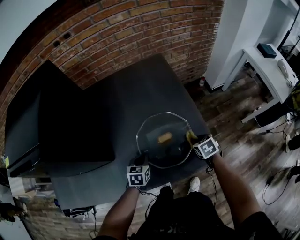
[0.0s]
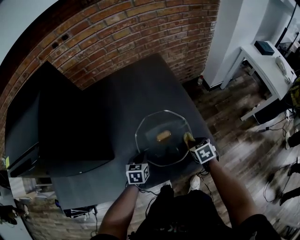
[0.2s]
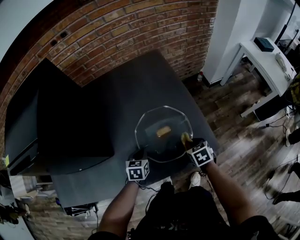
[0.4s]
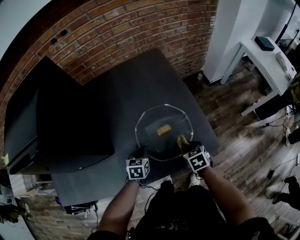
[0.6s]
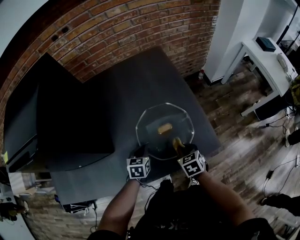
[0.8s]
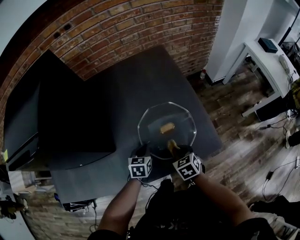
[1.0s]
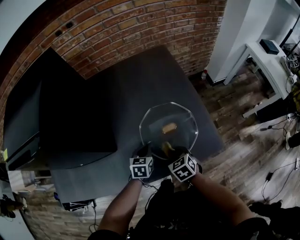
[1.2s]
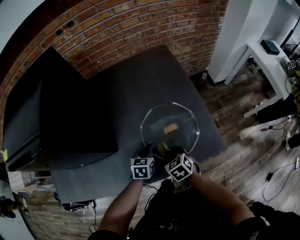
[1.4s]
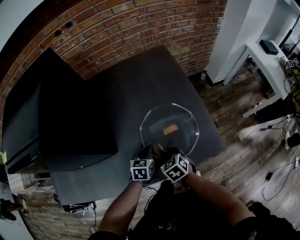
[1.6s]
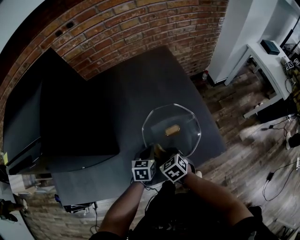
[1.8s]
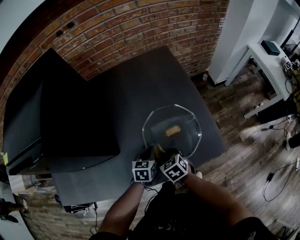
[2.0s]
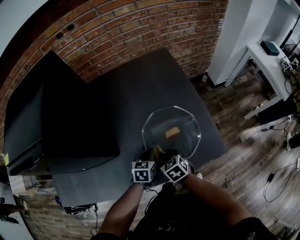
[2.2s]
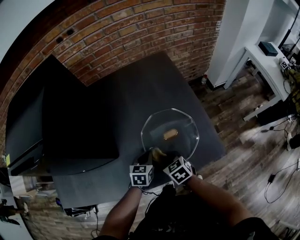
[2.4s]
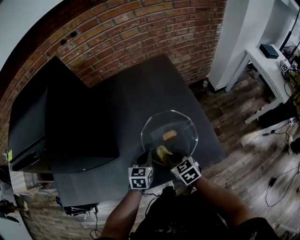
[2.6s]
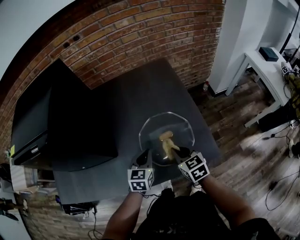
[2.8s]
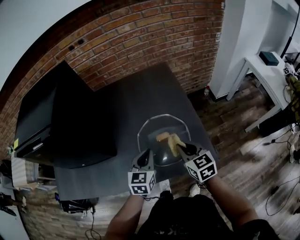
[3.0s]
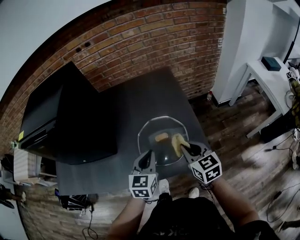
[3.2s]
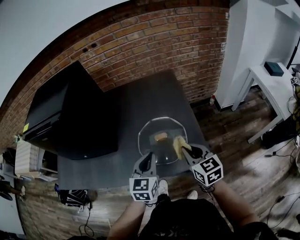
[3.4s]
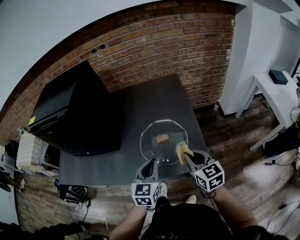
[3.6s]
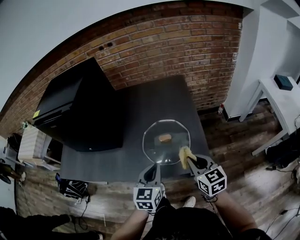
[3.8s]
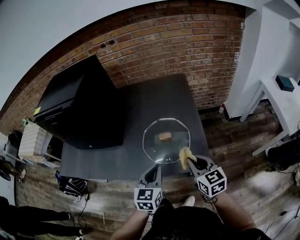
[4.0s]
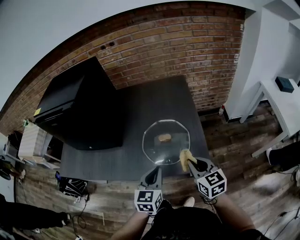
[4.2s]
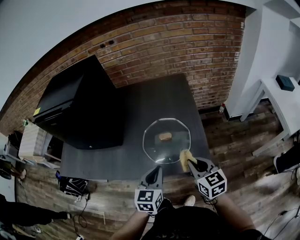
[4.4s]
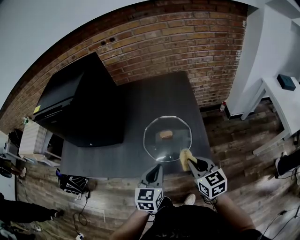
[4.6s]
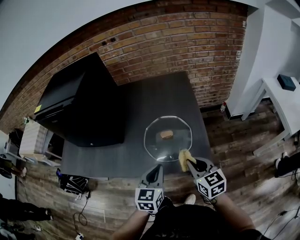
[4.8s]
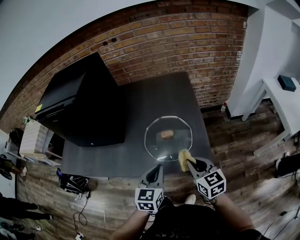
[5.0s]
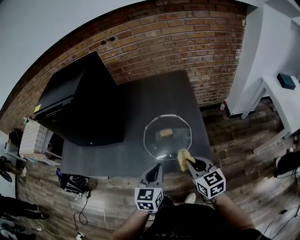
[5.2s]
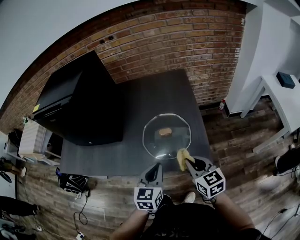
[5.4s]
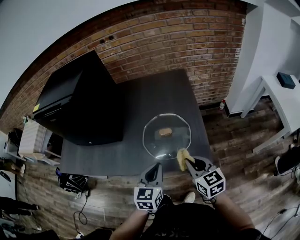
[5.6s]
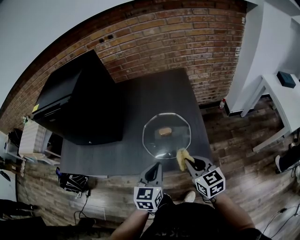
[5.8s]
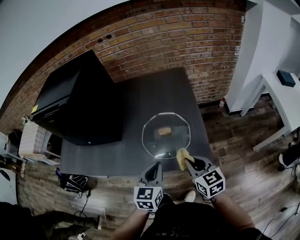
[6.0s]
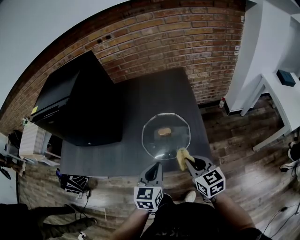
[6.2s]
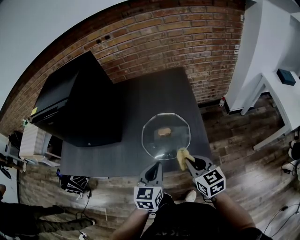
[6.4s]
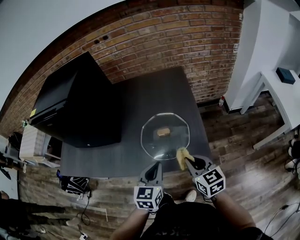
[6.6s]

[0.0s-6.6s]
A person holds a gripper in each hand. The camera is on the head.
0.0s to 1.6s: The right gripper shifts some 20 cm to the left.
1.6s to 3.2s: The two grippers go about 20 cm upward and to the right. The left gripper turns by approximately 30 degrees, while the right gripper angles its fingers upward, by approximately 30 degrees.
3.2s to 5.0s: The two grippers go about 10 cm backward.
5.0s to 6.6s: The grippers move only a little.

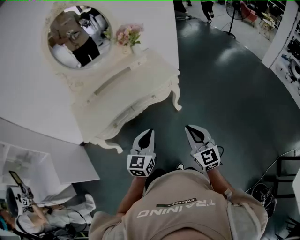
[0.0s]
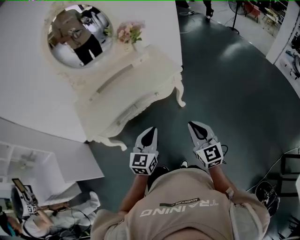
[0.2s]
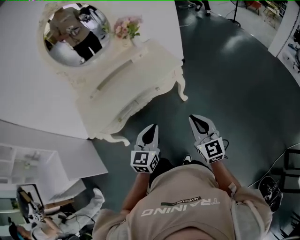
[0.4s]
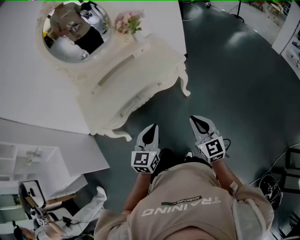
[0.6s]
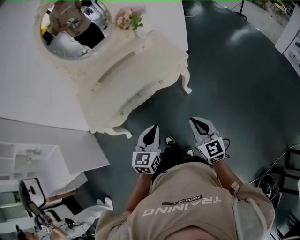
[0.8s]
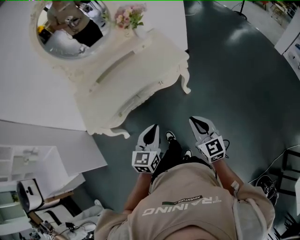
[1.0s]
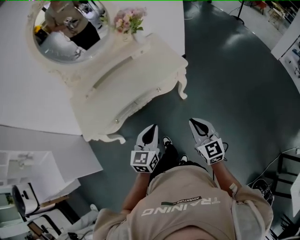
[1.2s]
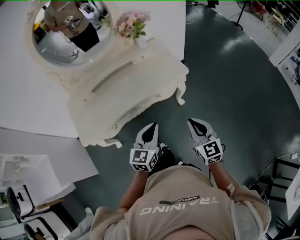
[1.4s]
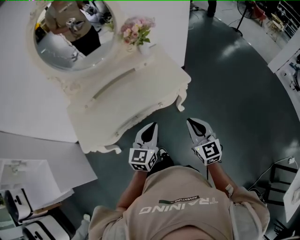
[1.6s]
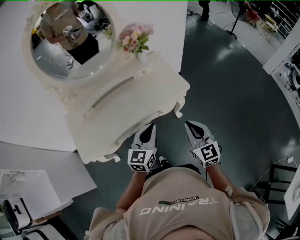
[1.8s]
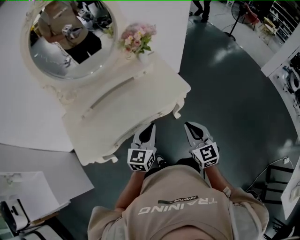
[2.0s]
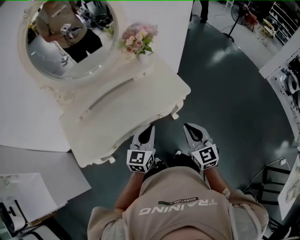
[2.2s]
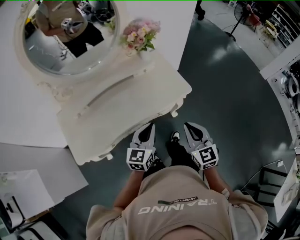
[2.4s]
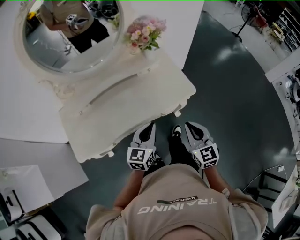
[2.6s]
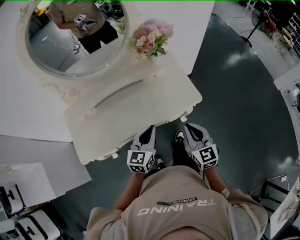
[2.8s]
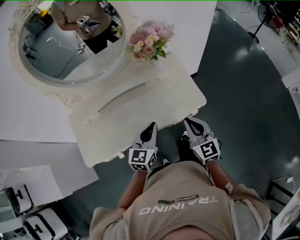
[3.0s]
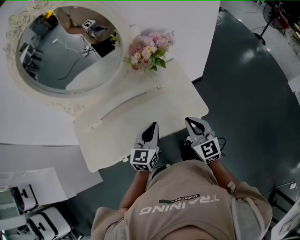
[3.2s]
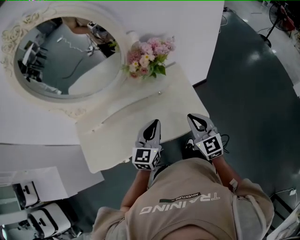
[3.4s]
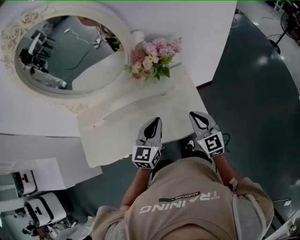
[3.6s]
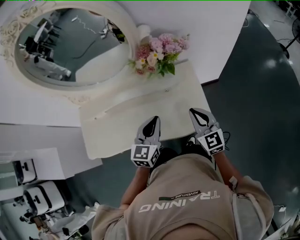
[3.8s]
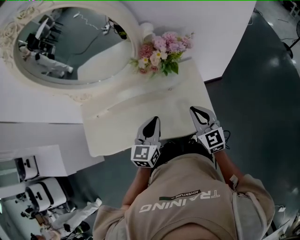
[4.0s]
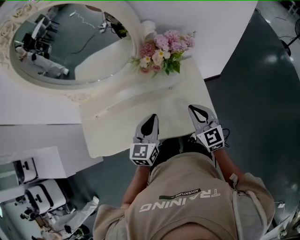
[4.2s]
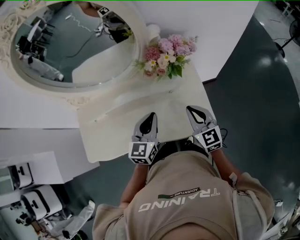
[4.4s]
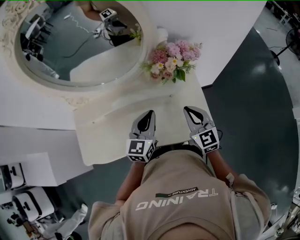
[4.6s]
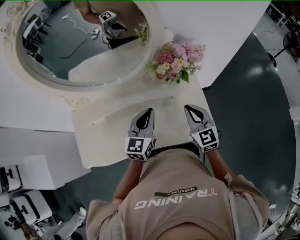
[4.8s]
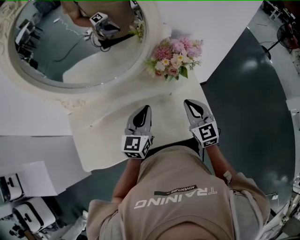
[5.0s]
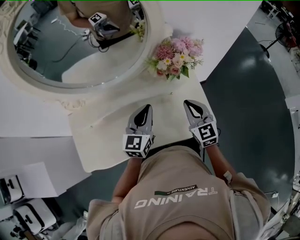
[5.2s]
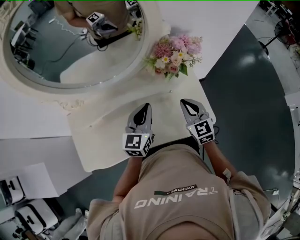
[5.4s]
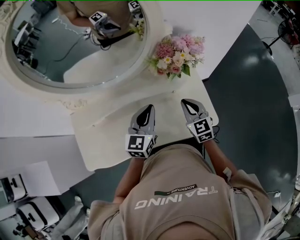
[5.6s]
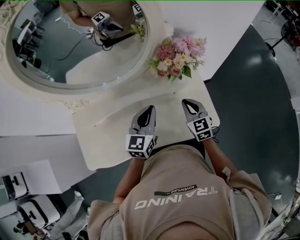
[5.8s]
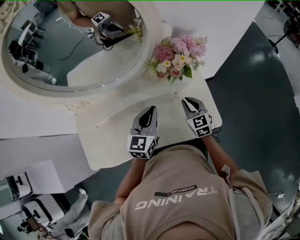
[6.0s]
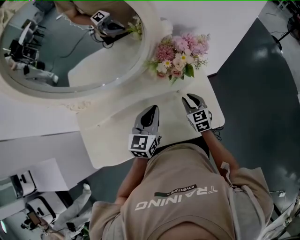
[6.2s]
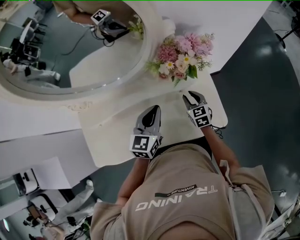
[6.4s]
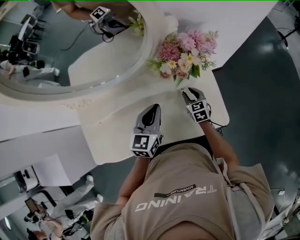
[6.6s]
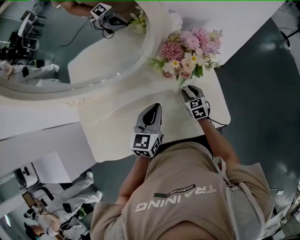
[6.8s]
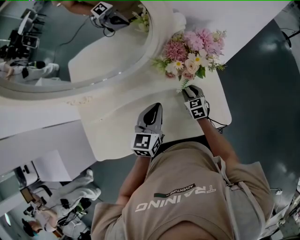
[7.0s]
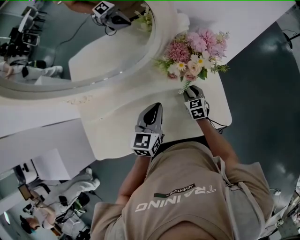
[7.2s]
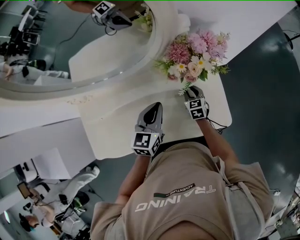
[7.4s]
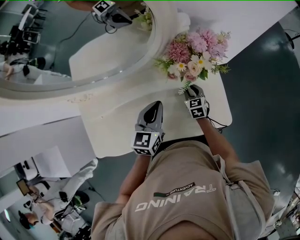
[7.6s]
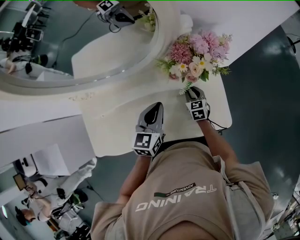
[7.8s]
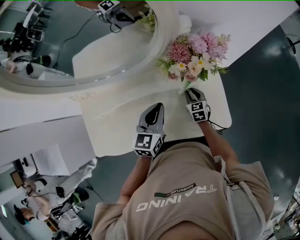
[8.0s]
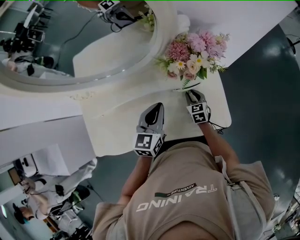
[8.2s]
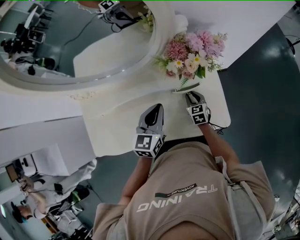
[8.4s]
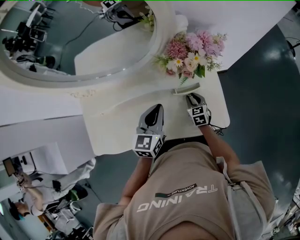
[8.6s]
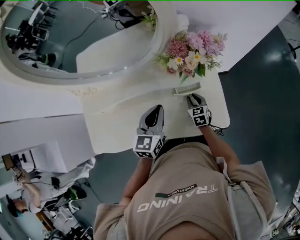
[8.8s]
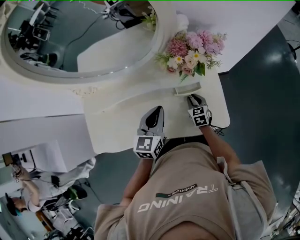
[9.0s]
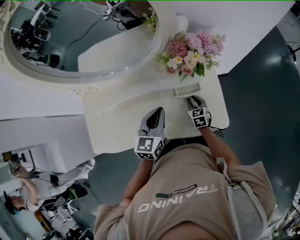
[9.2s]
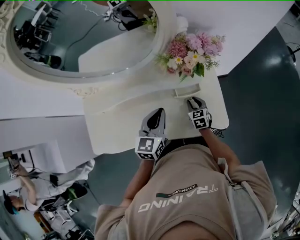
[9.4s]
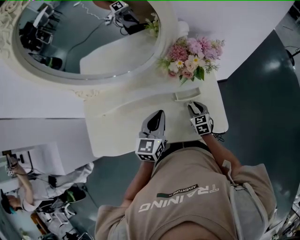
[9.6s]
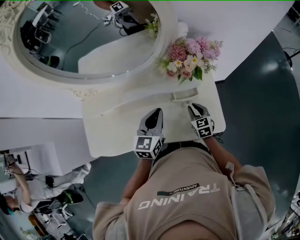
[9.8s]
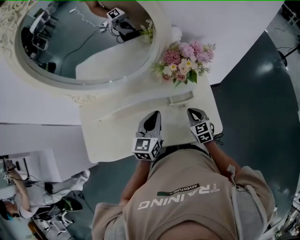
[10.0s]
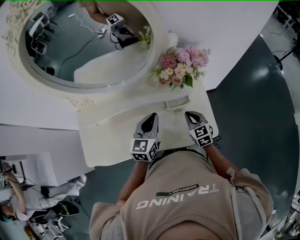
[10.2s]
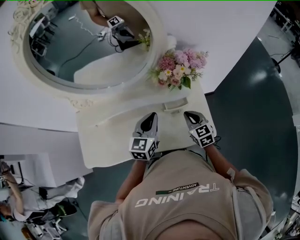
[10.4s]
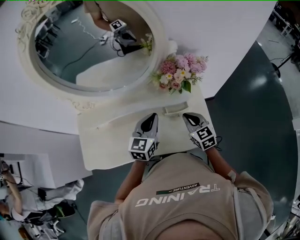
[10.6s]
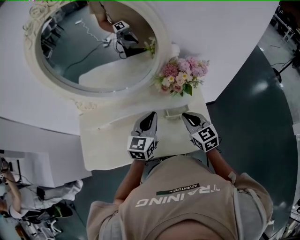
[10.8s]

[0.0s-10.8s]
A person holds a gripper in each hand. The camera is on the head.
0.0s to 1.6s: The grippers both shift forward by roughly 20 cm.
1.6s to 3.0s: Both grippers move forward, about 20 cm.
3.0s to 4.6s: The grippers both shift forward by about 20 cm.
4.6s to 6.2s: The right gripper goes about 15 cm downward and forward, and opens its fingers.
6.2s to 7.8s: The right gripper is displaced downward and forward by about 10 cm.
7.8s to 9.2s: The left gripper changes place by about 5 cm, while the right gripper shifts roughly 5 cm backward.
9.2s to 10.8s: The right gripper moves upward, approximately 20 cm, swivels about 20 degrees, and closes up, while the left gripper ends up roughly 5 cm from where it was.

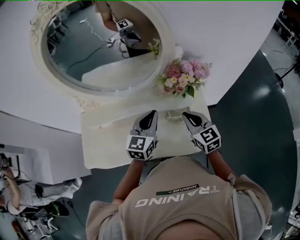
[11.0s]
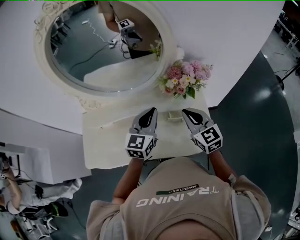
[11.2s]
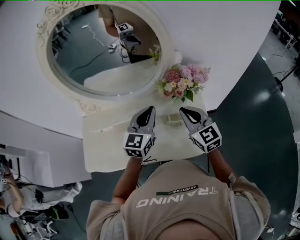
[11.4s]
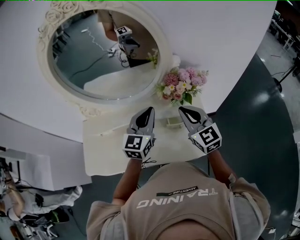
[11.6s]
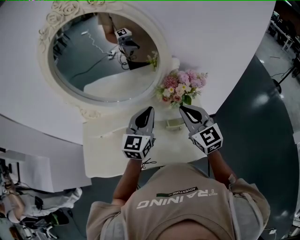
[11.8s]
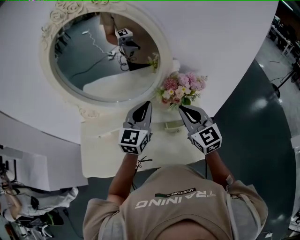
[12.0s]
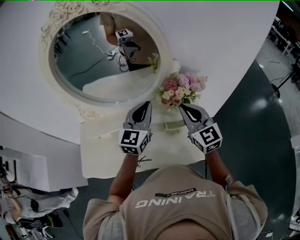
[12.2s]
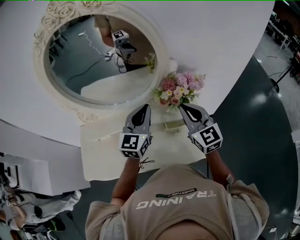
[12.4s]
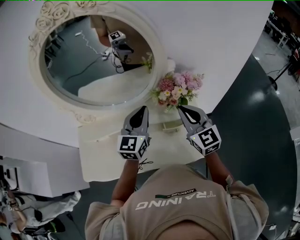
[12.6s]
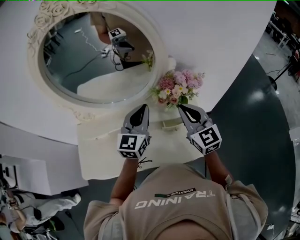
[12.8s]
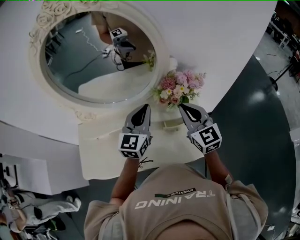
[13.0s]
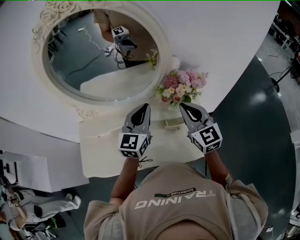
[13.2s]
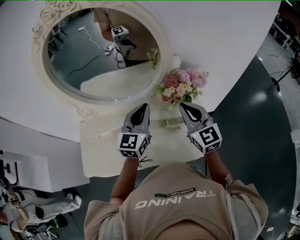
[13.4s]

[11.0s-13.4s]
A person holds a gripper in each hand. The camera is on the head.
11.0s to 12.2s: Both grippers travel together upward, some 10 cm.
12.2s to 13.4s: There are only small adjustments of the grippers.

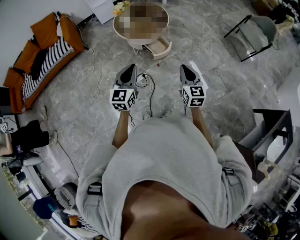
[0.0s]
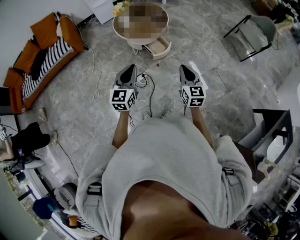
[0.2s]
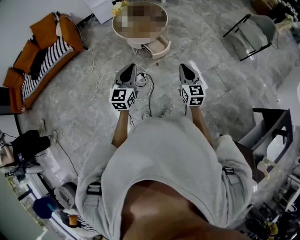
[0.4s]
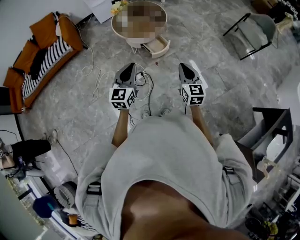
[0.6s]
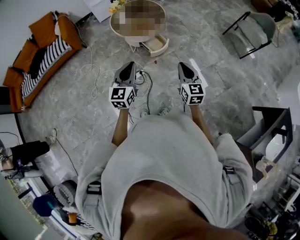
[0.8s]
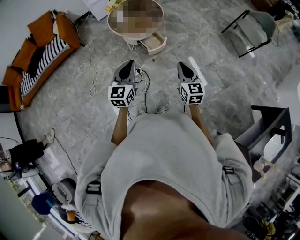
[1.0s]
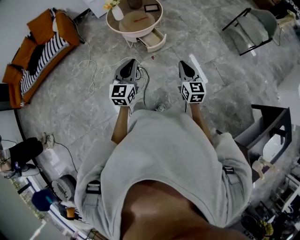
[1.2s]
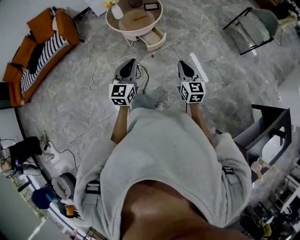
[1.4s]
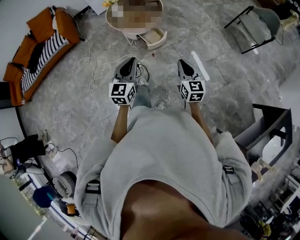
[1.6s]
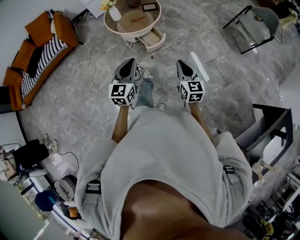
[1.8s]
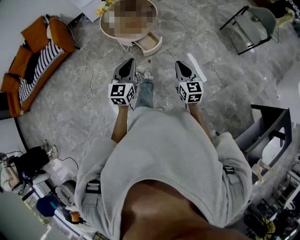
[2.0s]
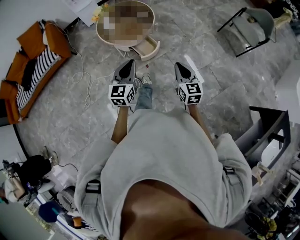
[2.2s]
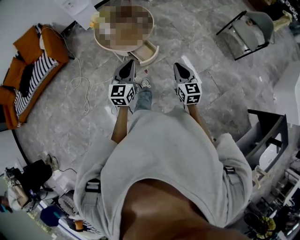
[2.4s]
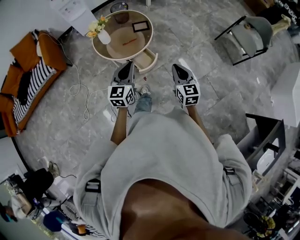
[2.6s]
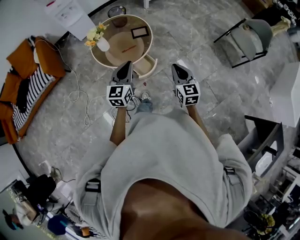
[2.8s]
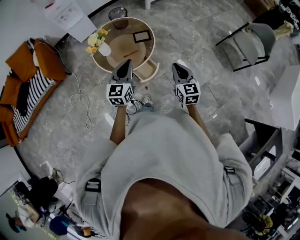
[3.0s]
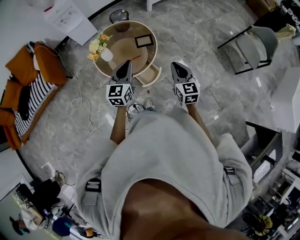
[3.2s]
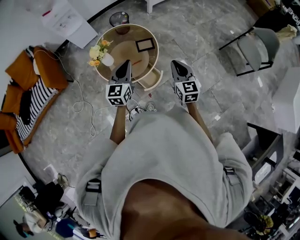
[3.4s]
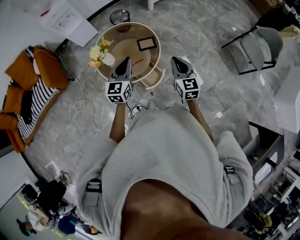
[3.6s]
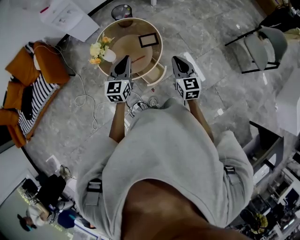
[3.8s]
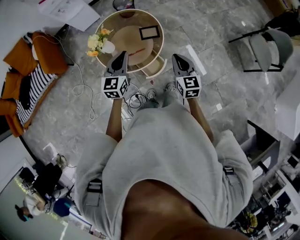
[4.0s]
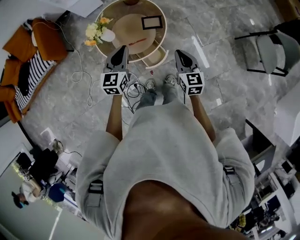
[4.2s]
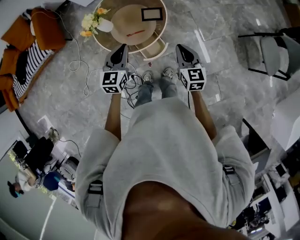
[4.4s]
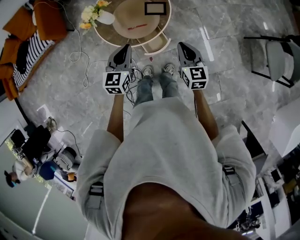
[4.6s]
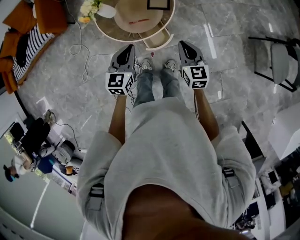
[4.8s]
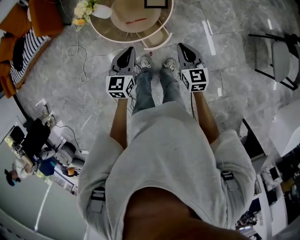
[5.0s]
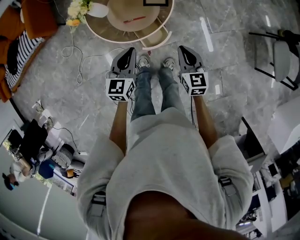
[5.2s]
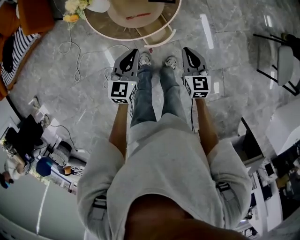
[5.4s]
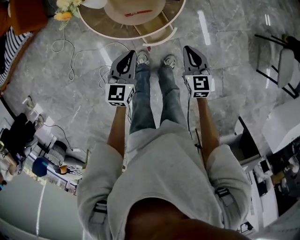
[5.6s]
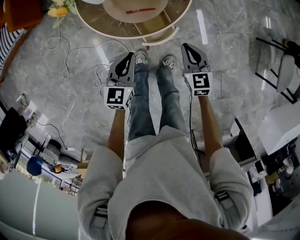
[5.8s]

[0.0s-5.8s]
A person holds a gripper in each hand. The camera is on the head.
0.0s to 1.4s: Both grippers move to the right, about 10 cm.
1.4s to 2.8s: Both grippers move forward, about 35 cm.
2.8s to 4.4s: The right gripper travels forward by some 25 cm. The left gripper shifts about 20 cm forward and downward.
4.4s to 5.8s: The two grippers go approximately 25 cm downward.
